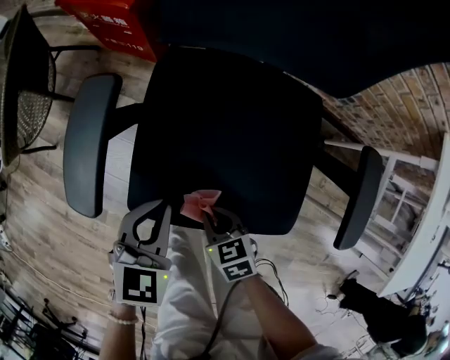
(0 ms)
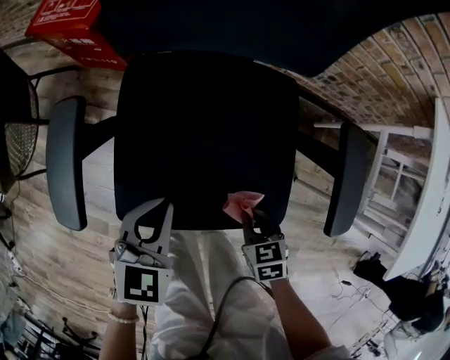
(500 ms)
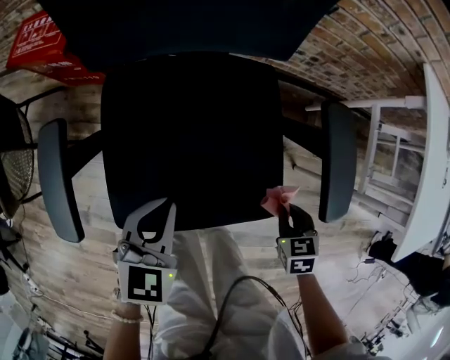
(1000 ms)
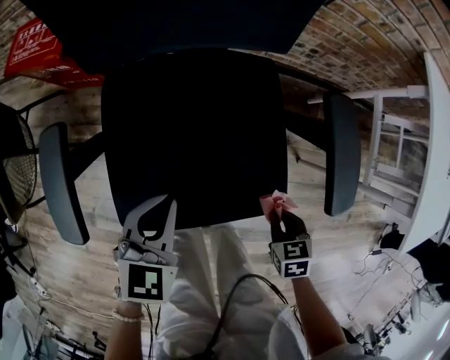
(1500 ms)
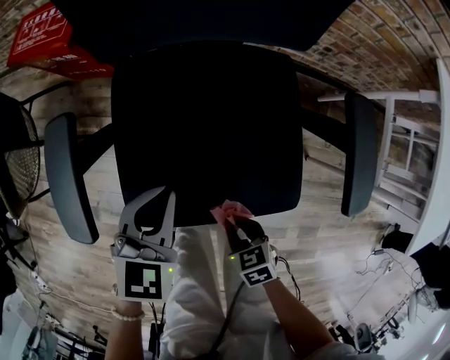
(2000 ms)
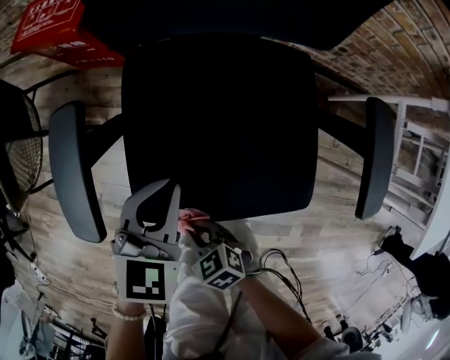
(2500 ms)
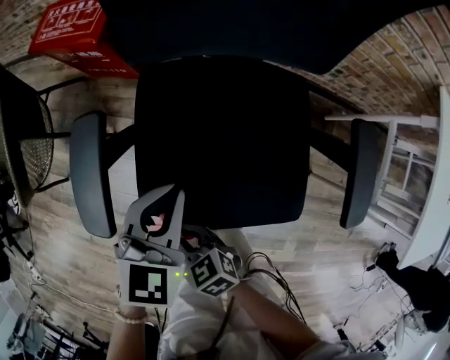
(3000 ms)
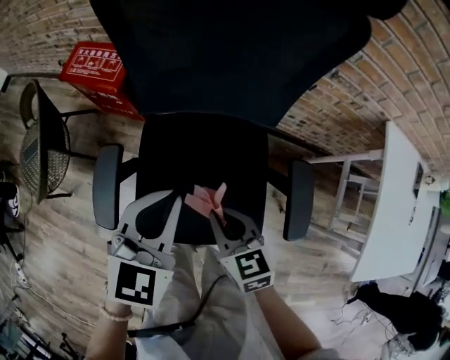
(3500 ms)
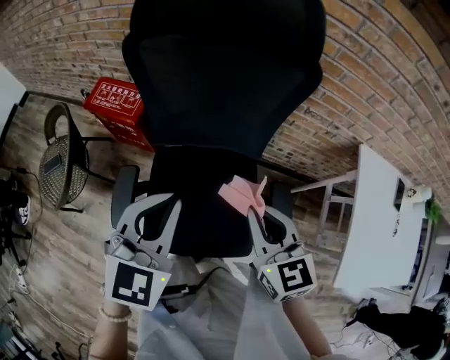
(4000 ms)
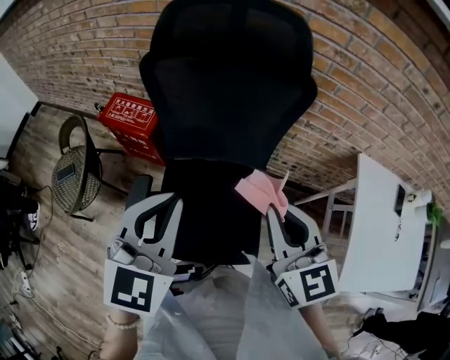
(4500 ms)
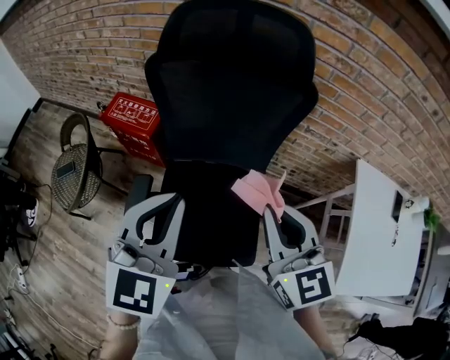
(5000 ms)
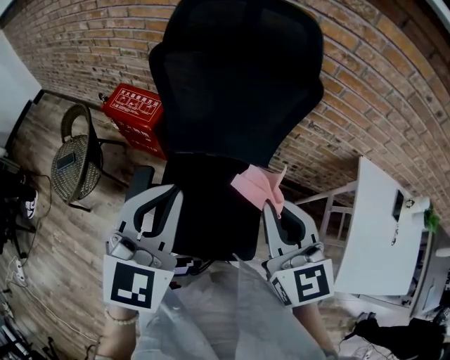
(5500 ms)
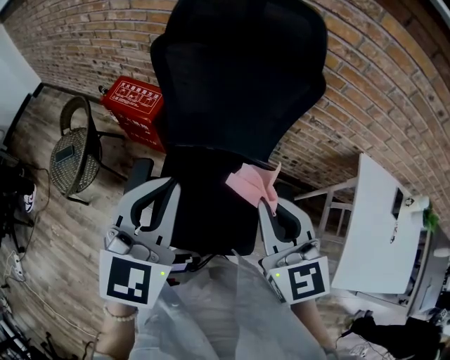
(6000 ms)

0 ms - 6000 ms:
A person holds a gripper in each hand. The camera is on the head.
0 ms - 2000 ms: The left gripper changes place by roughly 10 cm.
2000 ms - 4000 ms: Both grippers travel together upward, about 50 cm. The left gripper changes its angle by about 20 degrees, while the right gripper tips its fingers upward by approximately 40 degrees.
4000 ms - 6000 ms: Both grippers move upward, some 10 cm.

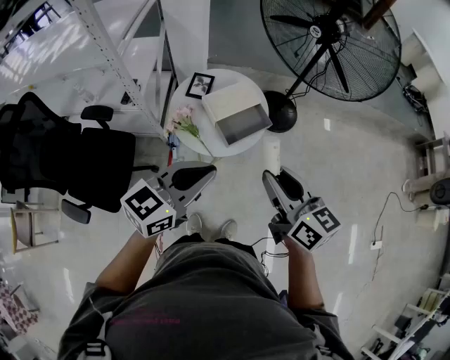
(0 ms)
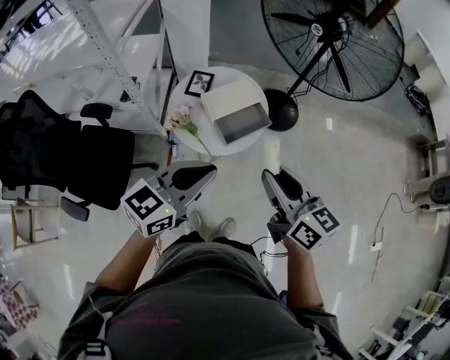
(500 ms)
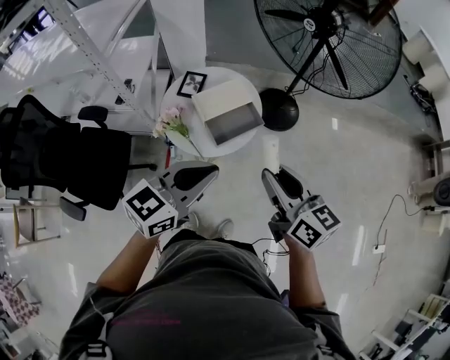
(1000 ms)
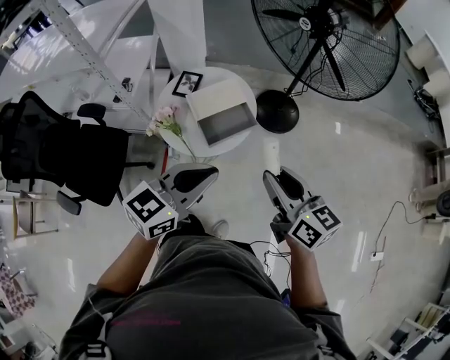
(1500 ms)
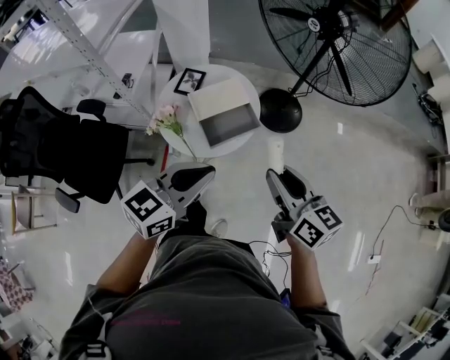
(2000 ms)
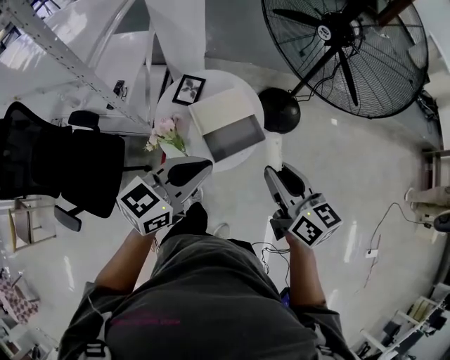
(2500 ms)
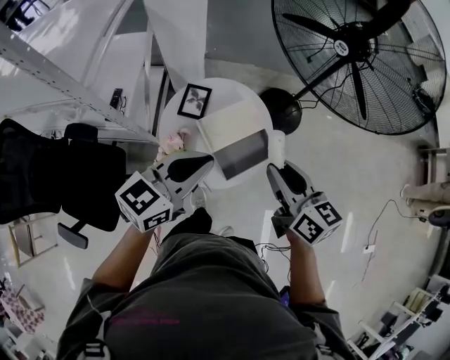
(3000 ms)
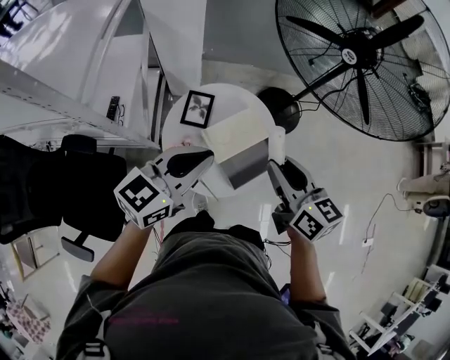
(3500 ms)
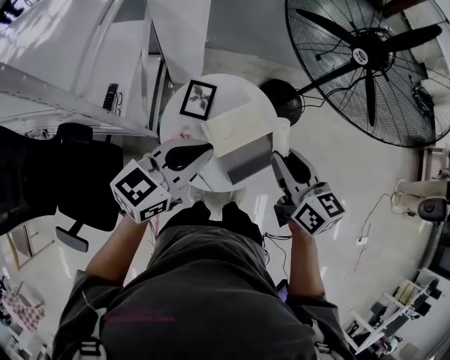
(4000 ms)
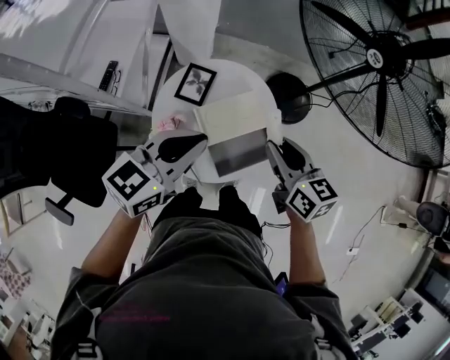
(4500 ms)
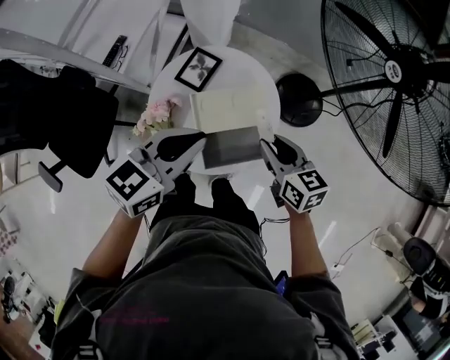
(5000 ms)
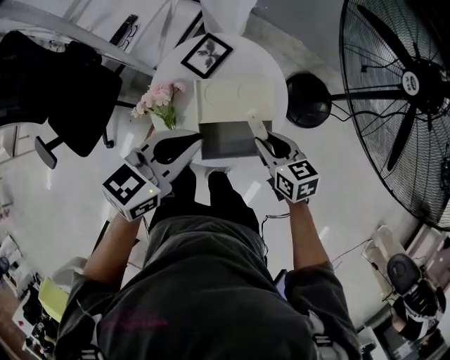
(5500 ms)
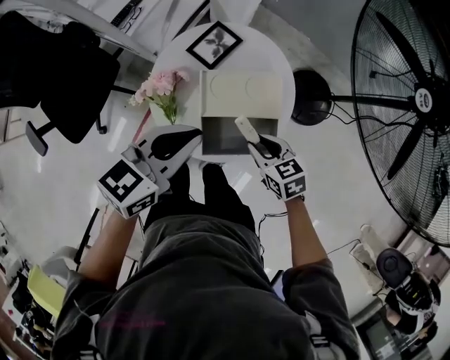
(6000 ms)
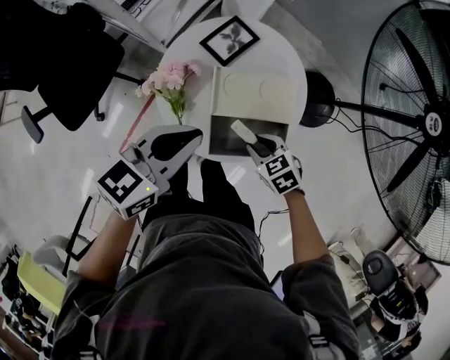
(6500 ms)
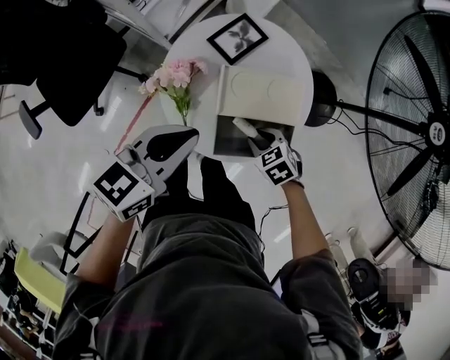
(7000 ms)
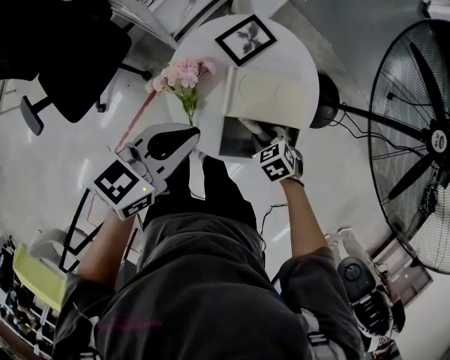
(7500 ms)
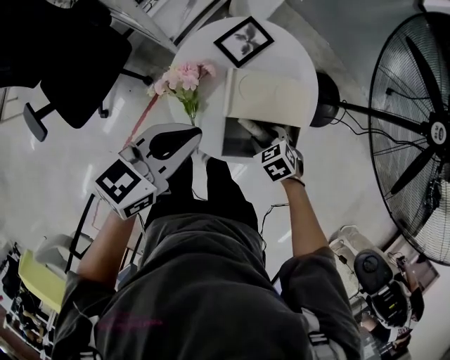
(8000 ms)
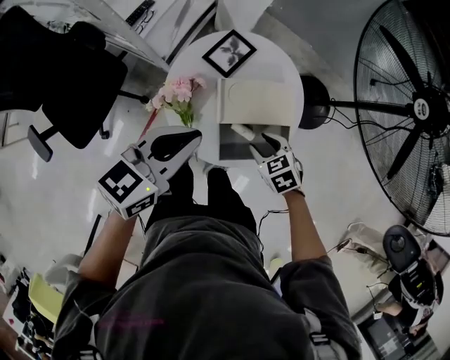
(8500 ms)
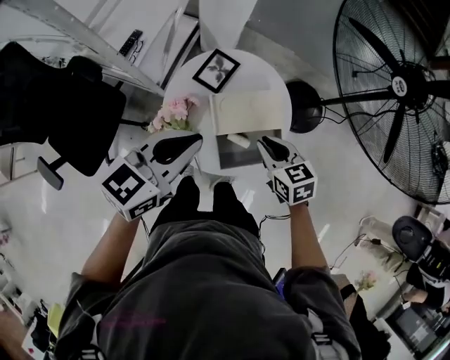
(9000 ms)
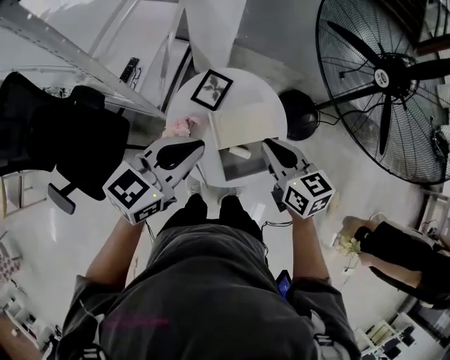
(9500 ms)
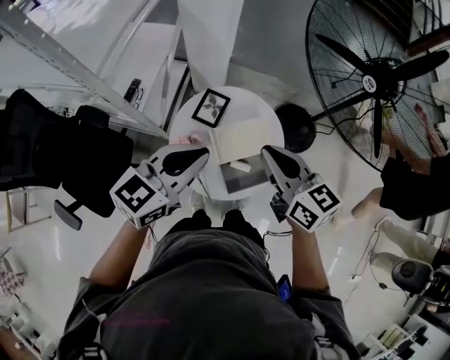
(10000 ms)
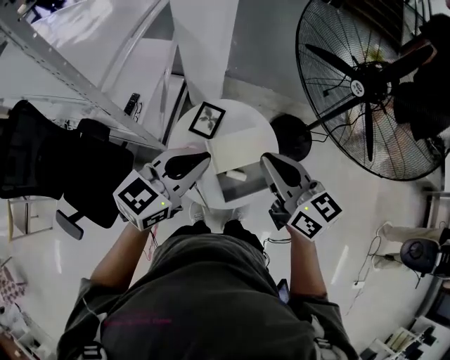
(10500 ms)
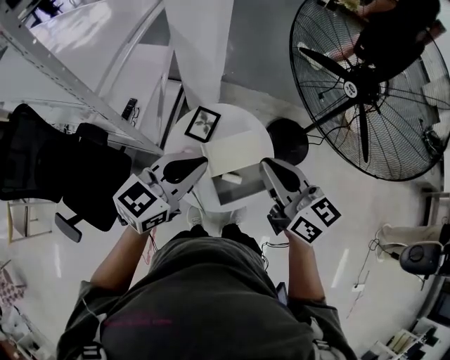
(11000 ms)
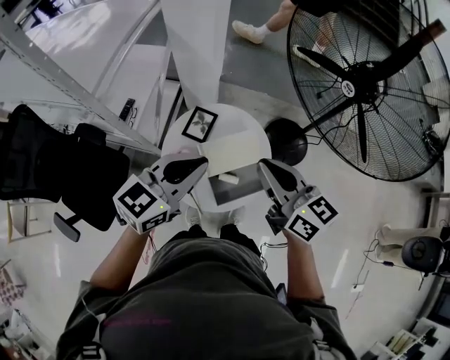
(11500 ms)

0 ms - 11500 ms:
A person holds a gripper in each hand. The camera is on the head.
0 ms - 2000 ms: Both grippers move to the right and forward, some 10 cm.
2000 ms - 4000 ms: Both grippers travel together forward and to the left, about 30 cm.
4000 ms - 6000 ms: The left gripper is displaced downward by roughly 10 cm, and swivels about 30 degrees, while the right gripper heads downward, covering approximately 25 cm, and swivels about 50 degrees.
6000 ms - 7500 ms: The right gripper goes roughly 10 cm downward, and turns by some 30 degrees; the left gripper moves to the left, approximately 10 cm.
7500 ms - 9500 ms: The right gripper is displaced upward by roughly 30 cm, tips its fingers upward by approximately 50 degrees, and closes its fingers, while the left gripper is displaced upward by approximately 15 cm, and swivels roughly 20 degrees.
9500 ms - 11500 ms: The right gripper shifts approximately 15 cm upward. The left gripper is displaced upward by approximately 5 cm.

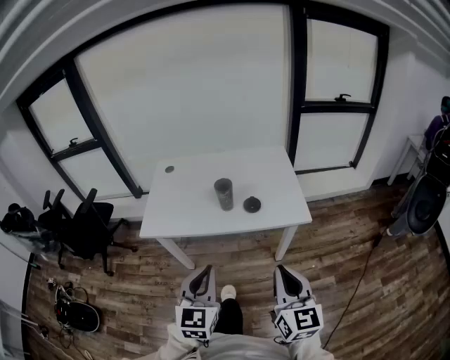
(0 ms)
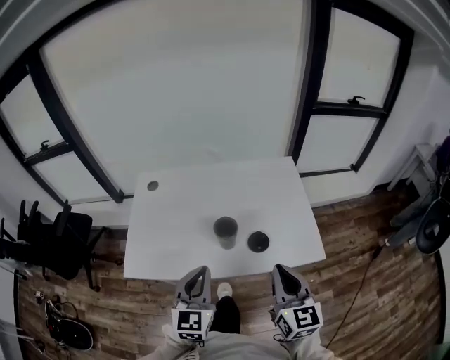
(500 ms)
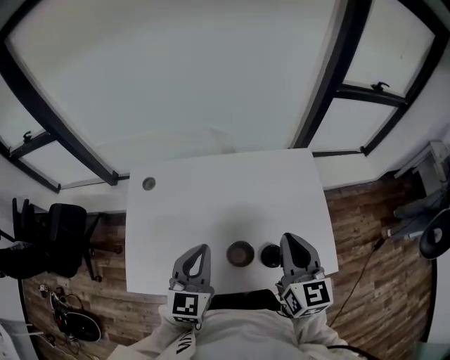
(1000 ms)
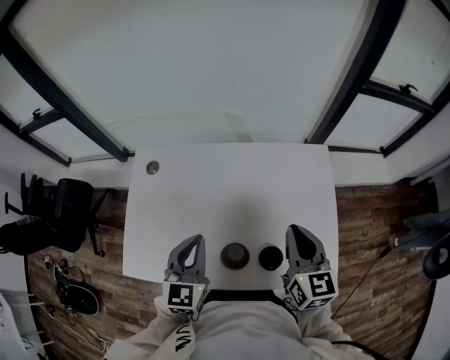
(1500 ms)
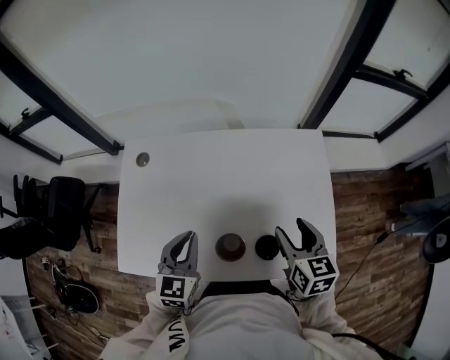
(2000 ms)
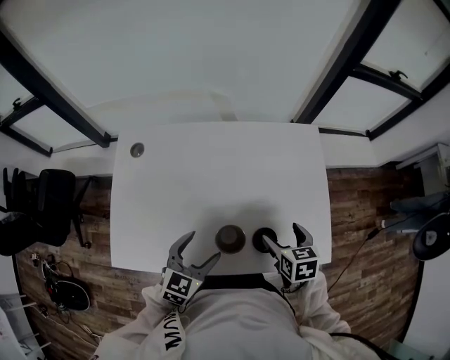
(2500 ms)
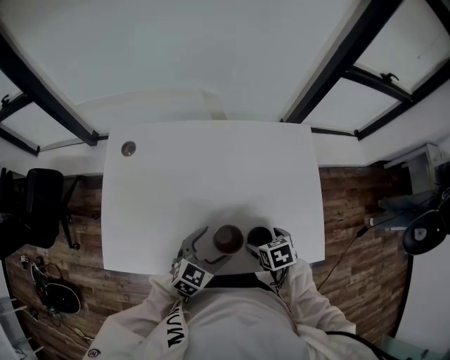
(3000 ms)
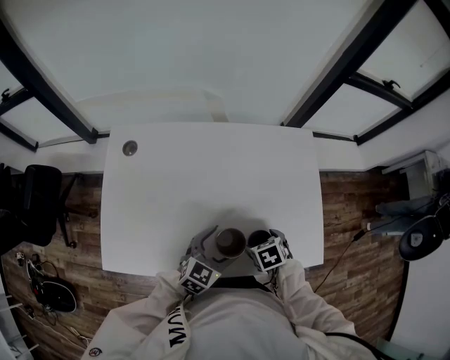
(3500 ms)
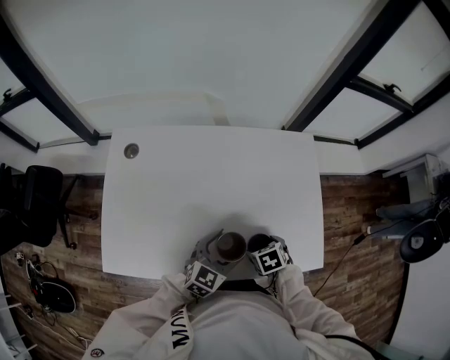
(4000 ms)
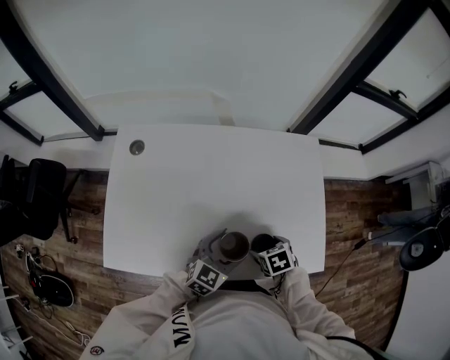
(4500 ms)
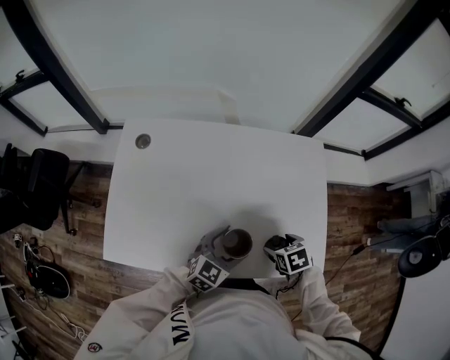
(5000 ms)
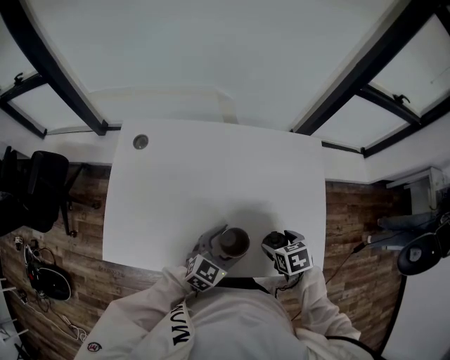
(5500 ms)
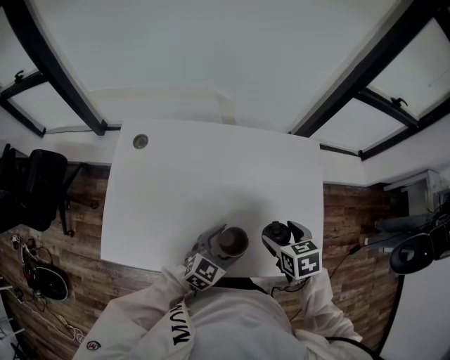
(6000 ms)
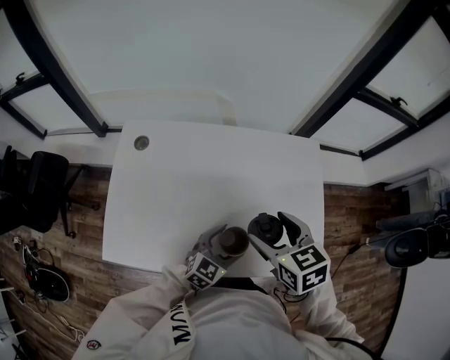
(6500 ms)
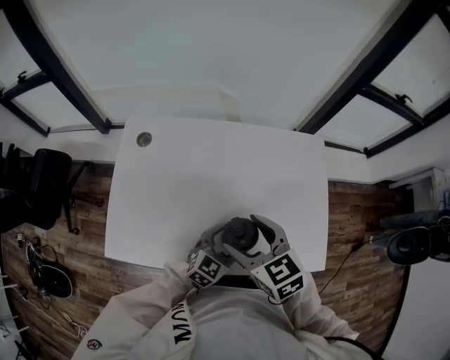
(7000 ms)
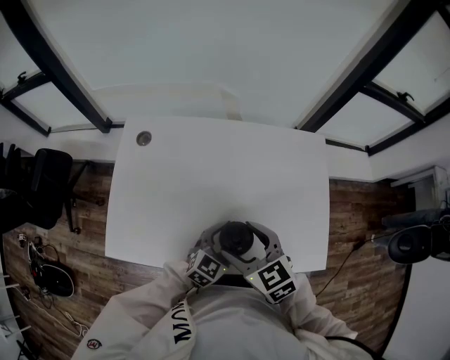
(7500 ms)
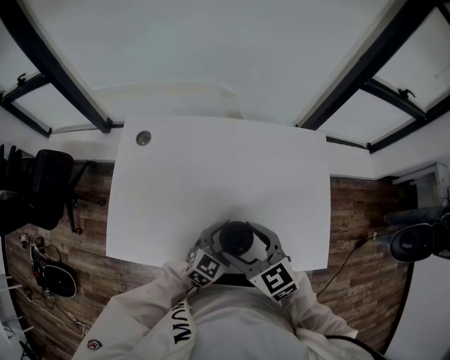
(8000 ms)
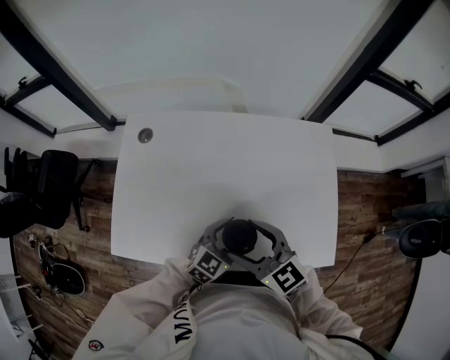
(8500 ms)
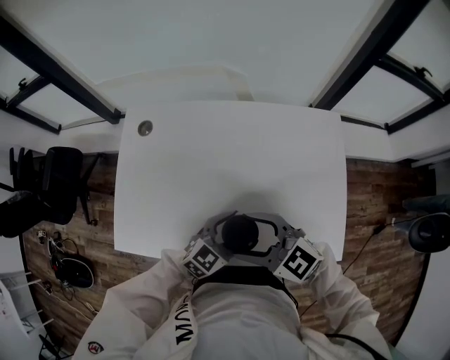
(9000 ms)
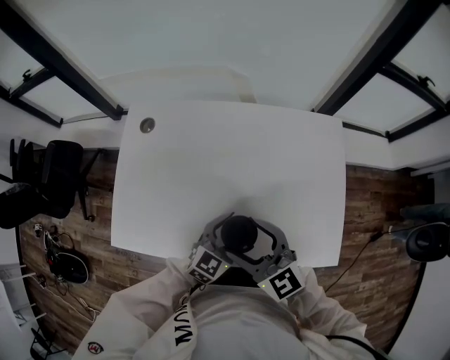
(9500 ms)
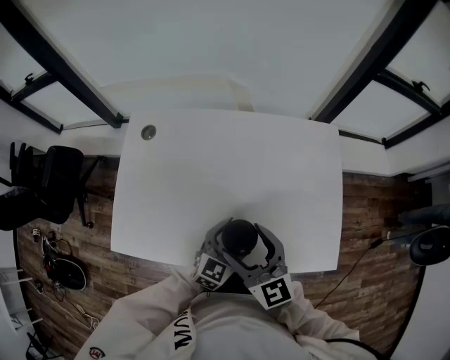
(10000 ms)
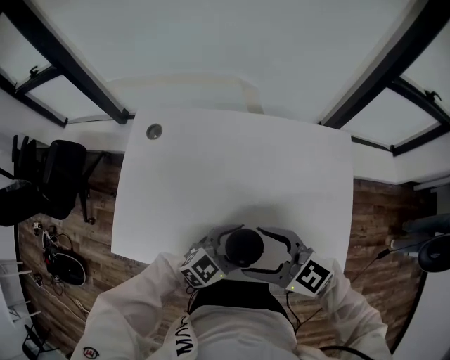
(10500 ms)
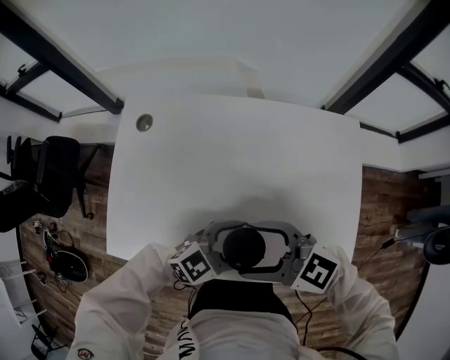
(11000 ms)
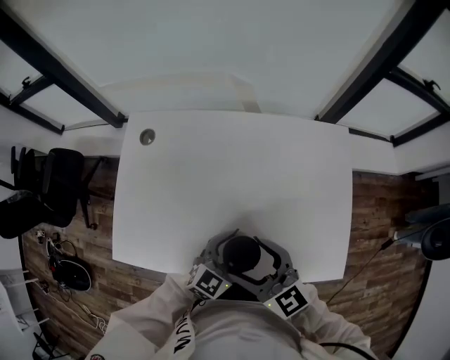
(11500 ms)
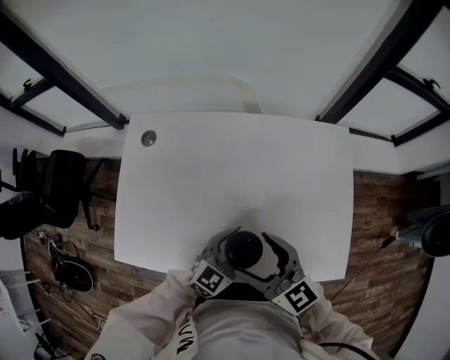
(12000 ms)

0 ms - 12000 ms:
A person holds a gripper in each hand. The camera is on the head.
0 ms - 2000 ms: The pair of grippers is taken forward, roughly 50 cm. The right gripper changes its angle by roughly 30 degrees, and opens its fingers.
2000 ms - 4000 ms: The left gripper ends up about 15 cm from where it was, rotates about 30 degrees, and opens, while the right gripper is displaced downward by some 20 cm, points its fingers some 50 degrees further downward, and opens its fingers.
4000 ms - 6000 ms: The right gripper goes about 15 cm upward, and swivels about 20 degrees.
6000 ms - 8000 ms: The right gripper is displaced to the left and upward by approximately 15 cm, and turns by roughly 40 degrees.
